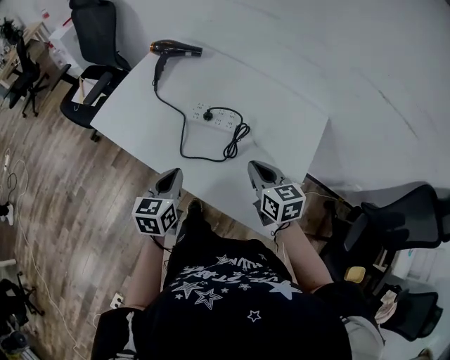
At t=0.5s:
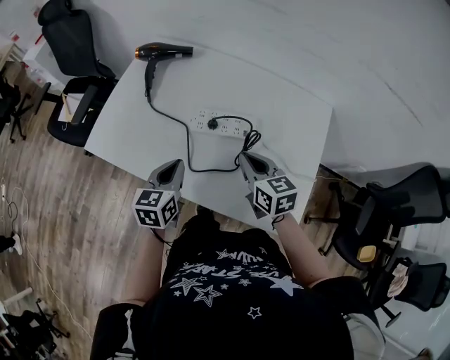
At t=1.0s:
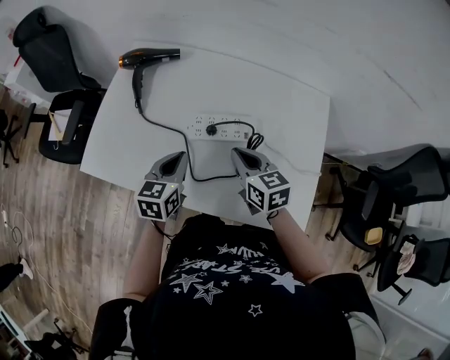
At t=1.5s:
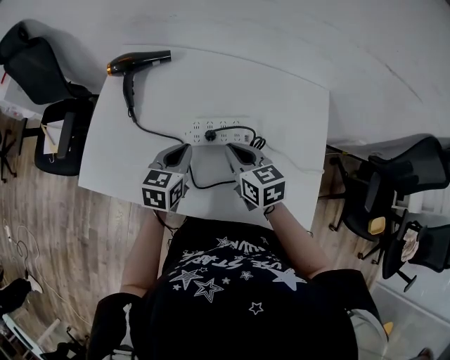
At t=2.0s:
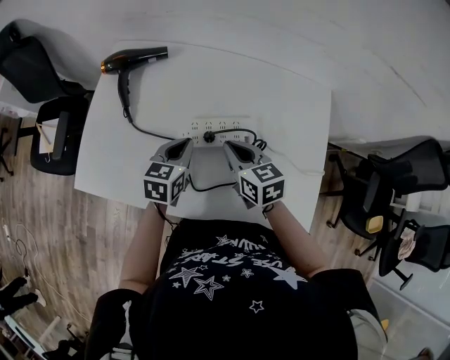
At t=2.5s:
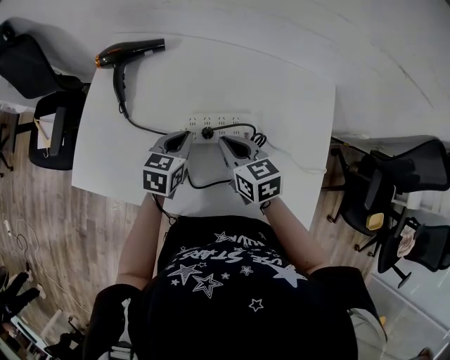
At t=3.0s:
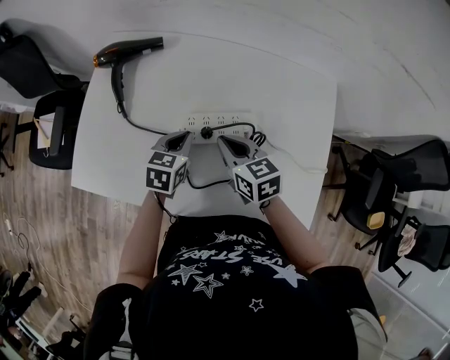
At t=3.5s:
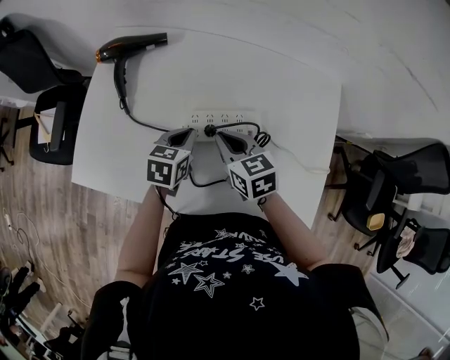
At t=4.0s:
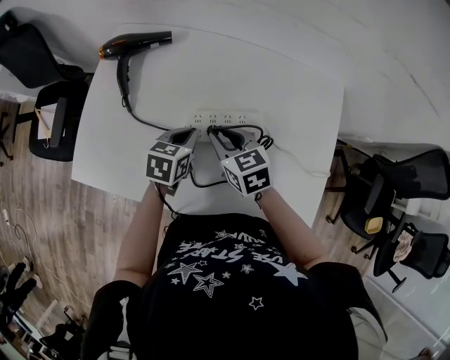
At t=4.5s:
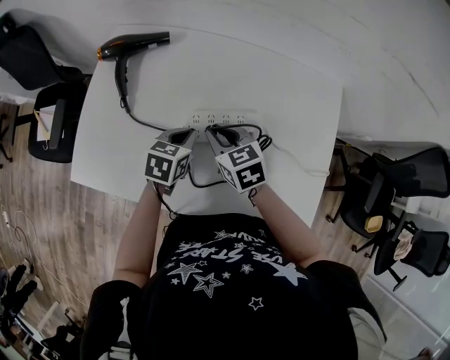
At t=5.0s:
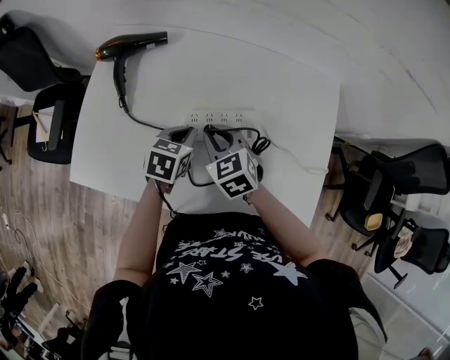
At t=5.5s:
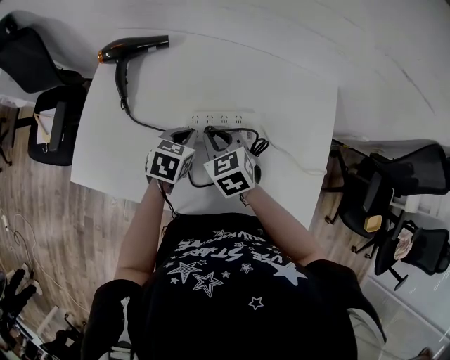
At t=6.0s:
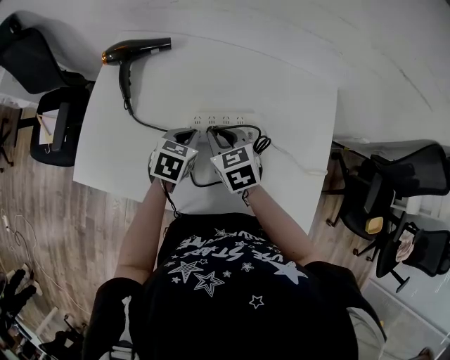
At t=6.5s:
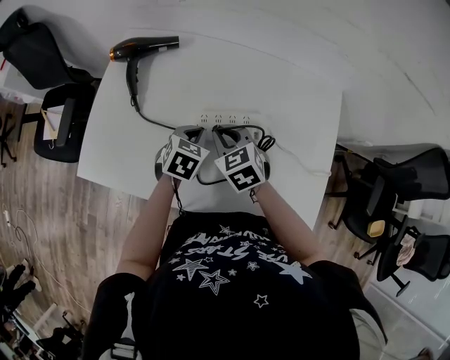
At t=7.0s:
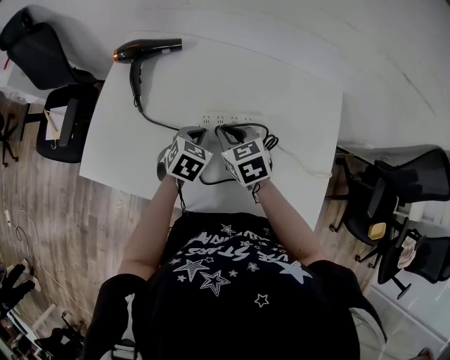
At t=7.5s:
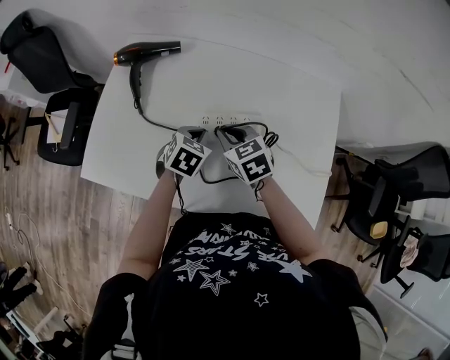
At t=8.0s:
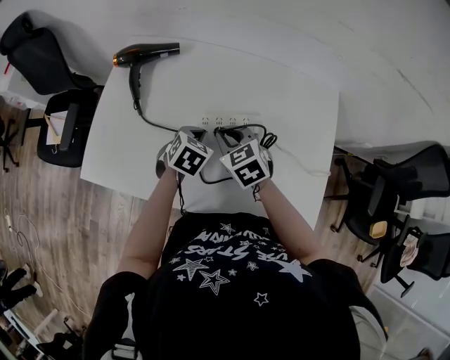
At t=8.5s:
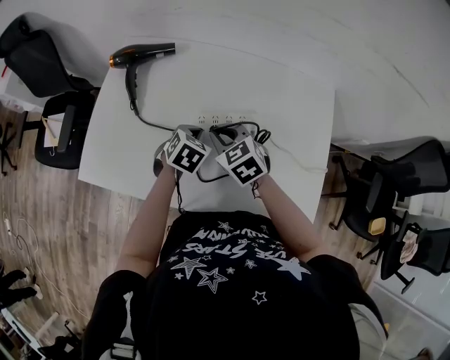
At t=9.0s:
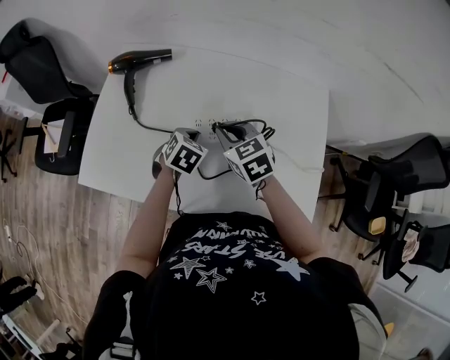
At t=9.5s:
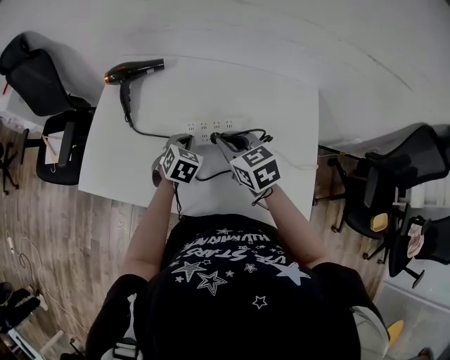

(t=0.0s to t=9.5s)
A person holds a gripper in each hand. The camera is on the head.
t=0.0s - t=2.0s: The right gripper shifts roughly 20 cm forward and to the left, while the left gripper travels forward by roughly 25 cm, and rotates some 30 degrees.
t=2.0s - t=4.0s: The right gripper shifts by about 5 cm.
t=4.0s - t=5.5s: The grippers move only a little.
t=5.5s - t=7.5s: The grippers make only small movements.
t=7.5s - t=9.5s: The right gripper goes approximately 5 cm upward.

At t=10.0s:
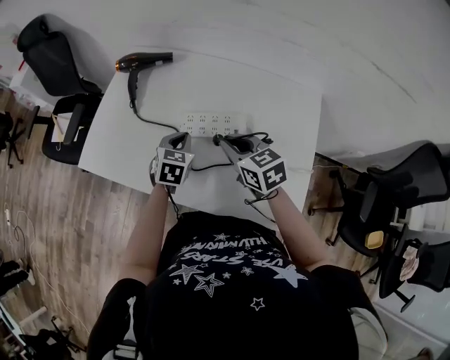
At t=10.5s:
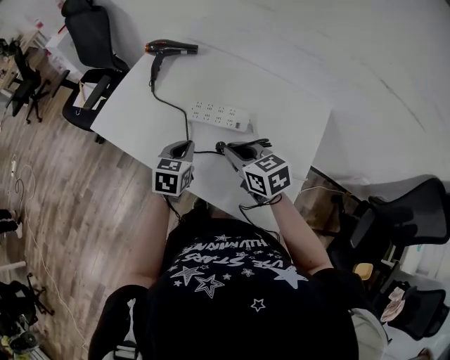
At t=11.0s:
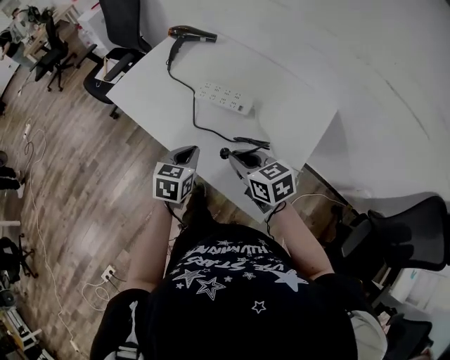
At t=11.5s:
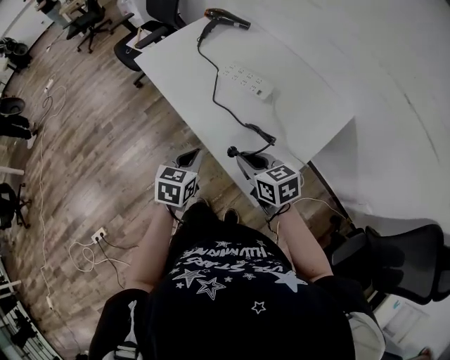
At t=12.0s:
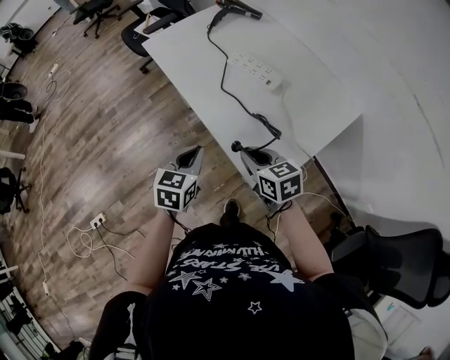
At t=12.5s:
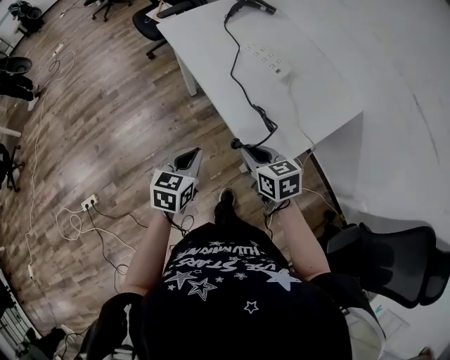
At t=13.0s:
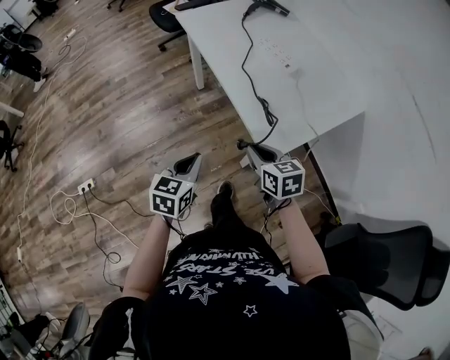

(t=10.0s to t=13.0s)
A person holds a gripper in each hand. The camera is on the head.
t=10.0s - t=11.5s: The left gripper ends up some 35 cm from where it was, and rotates some 30 degrees, while the right gripper ends up approximately 25 cm from where it was, and changes its angle by roughly 30 degrees.
t=11.5s - t=13.0s: The right gripper shifts roughly 15 cm backward. The left gripper is displaced backward and to the left by roughly 25 cm.

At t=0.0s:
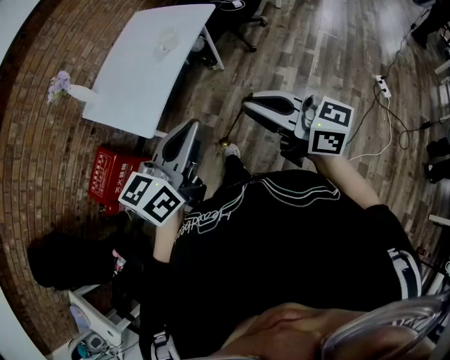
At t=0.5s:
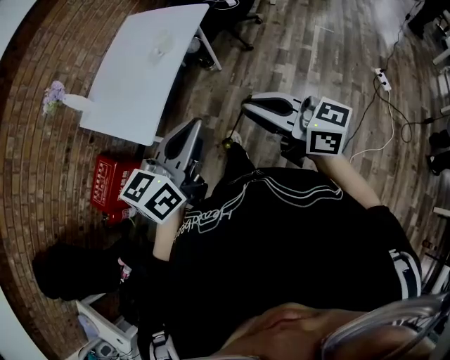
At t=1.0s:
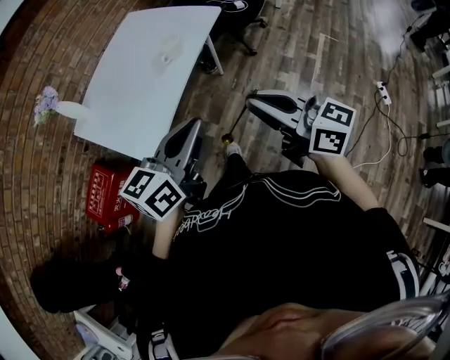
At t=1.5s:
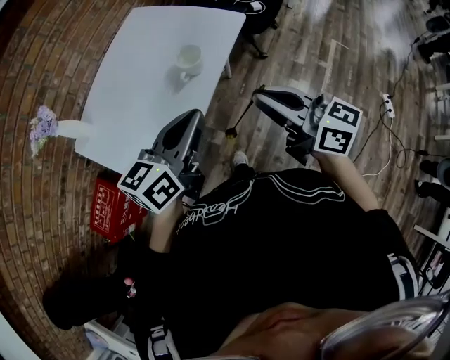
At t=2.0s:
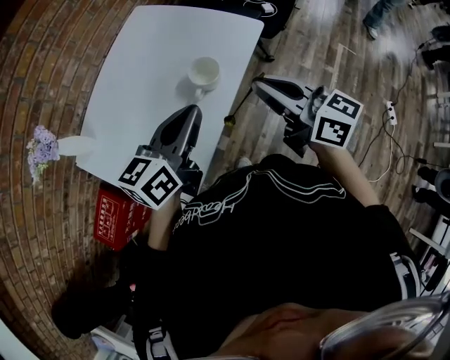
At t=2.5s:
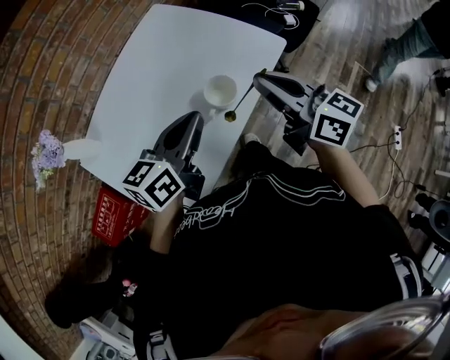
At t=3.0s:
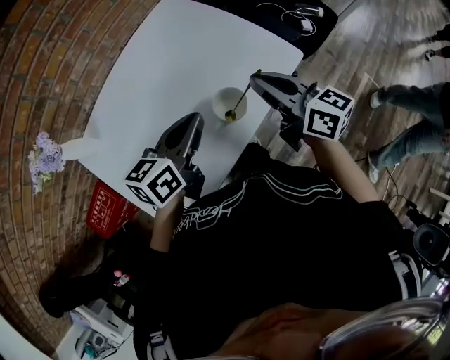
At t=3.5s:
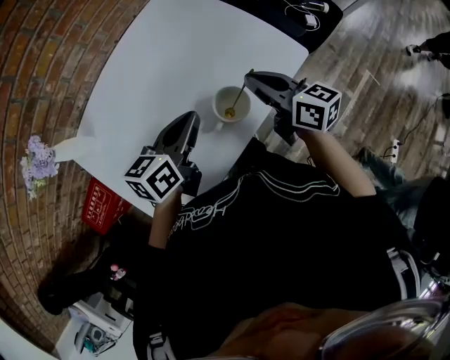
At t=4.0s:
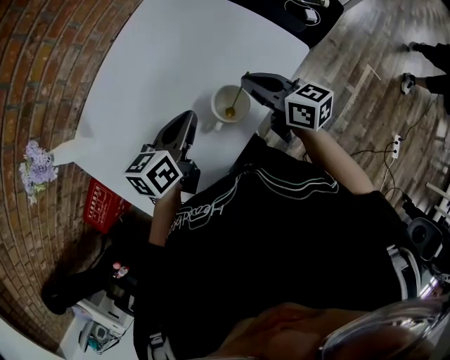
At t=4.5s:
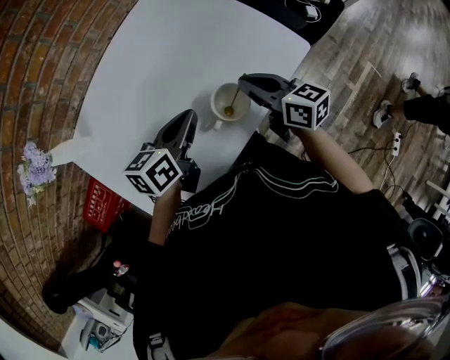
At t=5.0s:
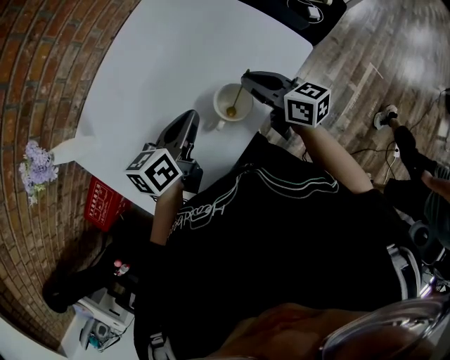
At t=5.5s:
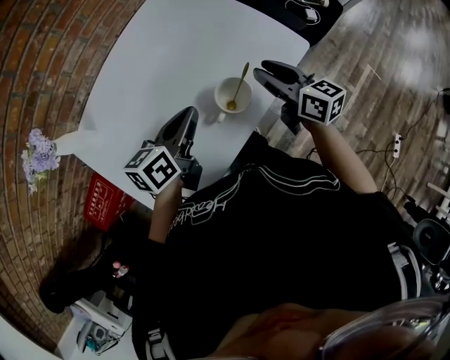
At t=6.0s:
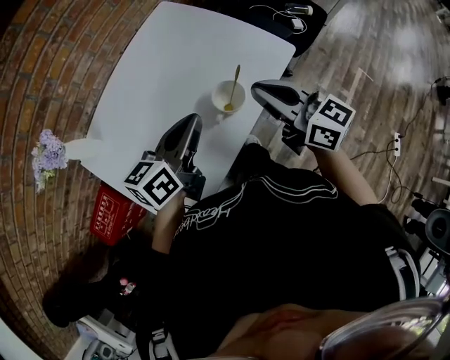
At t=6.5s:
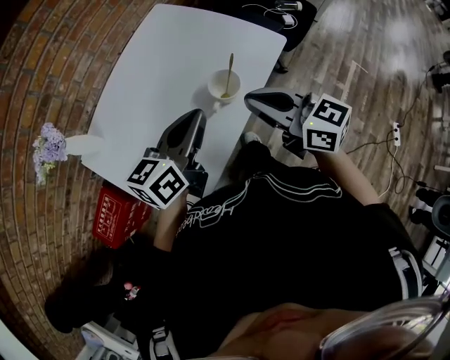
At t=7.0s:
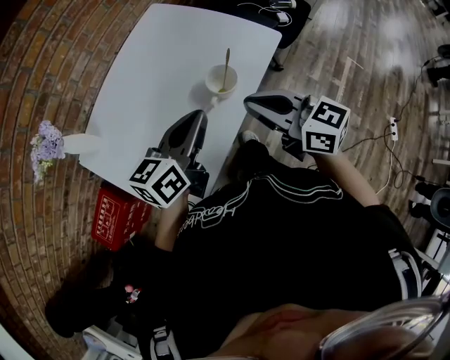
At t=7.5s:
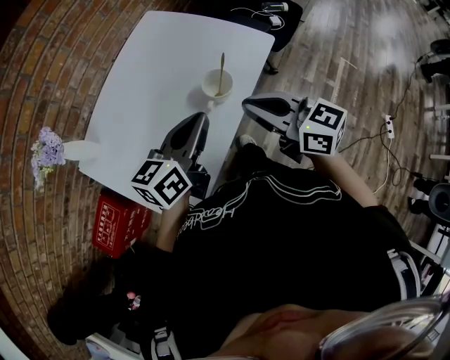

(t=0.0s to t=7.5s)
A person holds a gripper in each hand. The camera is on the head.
t=0.0s - t=2.0s: The pair of grippers is taken forward, some 50 cm.
t=2.0s - t=4.0s: Both grippers move forward and downward, about 25 cm. The left gripper changes its angle by about 20 degrees; the right gripper changes its angle by about 20 degrees.
t=4.0s - t=5.5s: The right gripper opens its fingers.
t=5.5s - t=7.5s: The right gripper heads backward and upward, covering roughly 25 cm, and closes its fingers; the left gripper heads backward and upward, covering approximately 15 cm, and turns by approximately 20 degrees.

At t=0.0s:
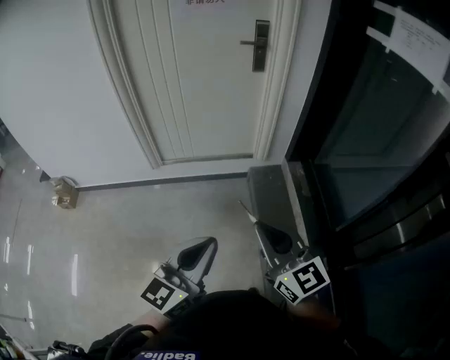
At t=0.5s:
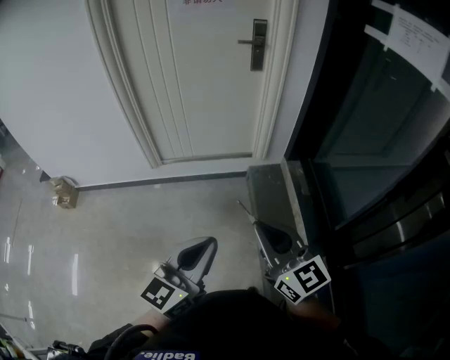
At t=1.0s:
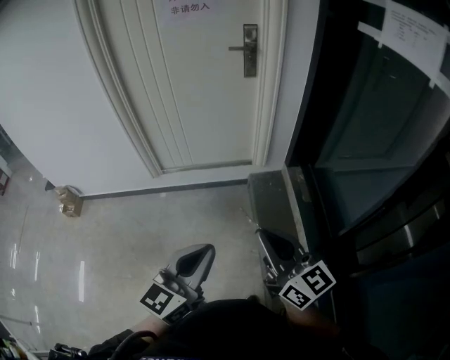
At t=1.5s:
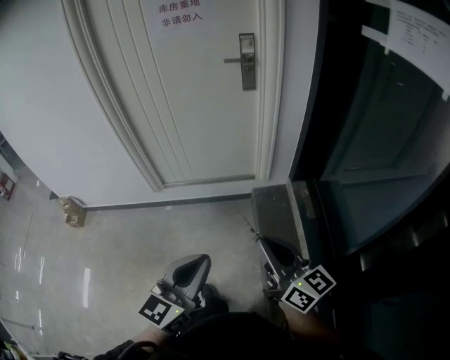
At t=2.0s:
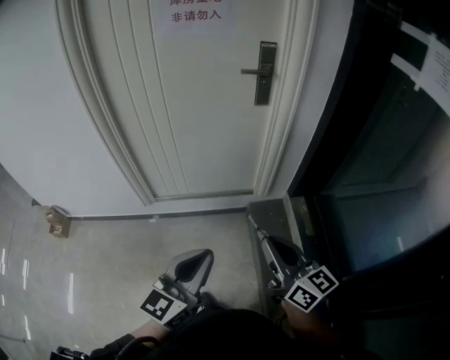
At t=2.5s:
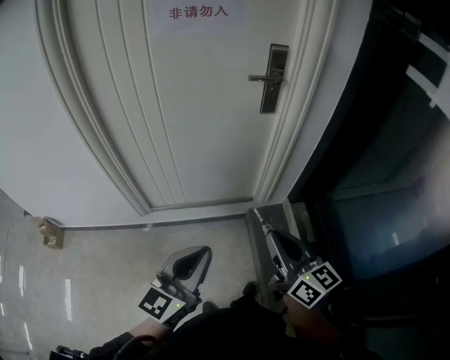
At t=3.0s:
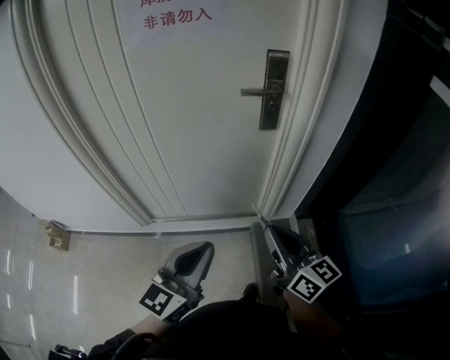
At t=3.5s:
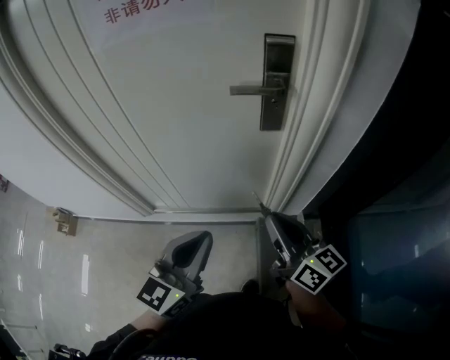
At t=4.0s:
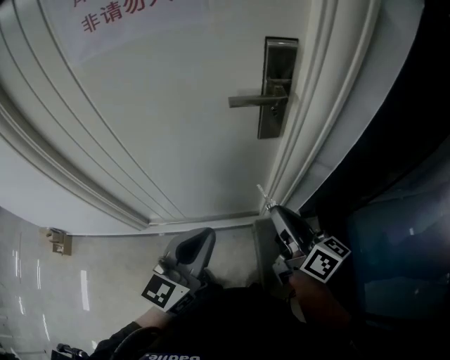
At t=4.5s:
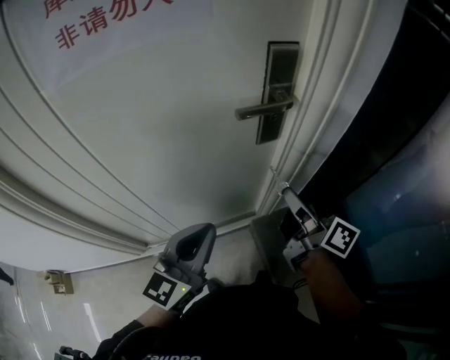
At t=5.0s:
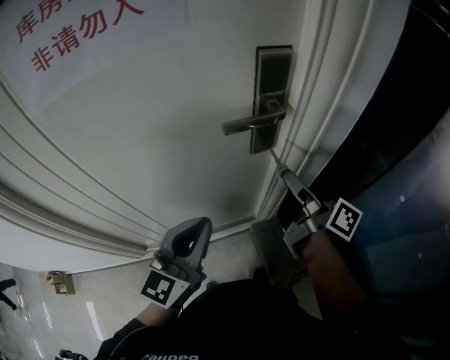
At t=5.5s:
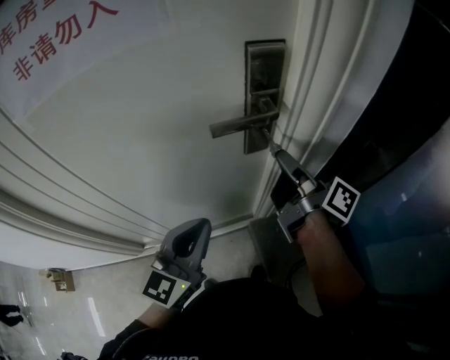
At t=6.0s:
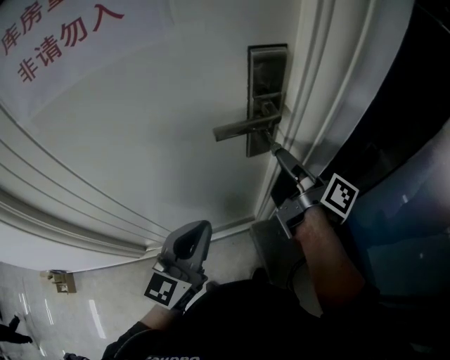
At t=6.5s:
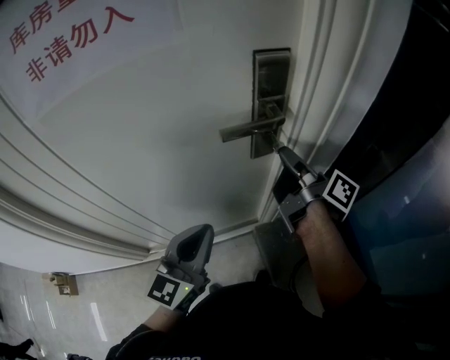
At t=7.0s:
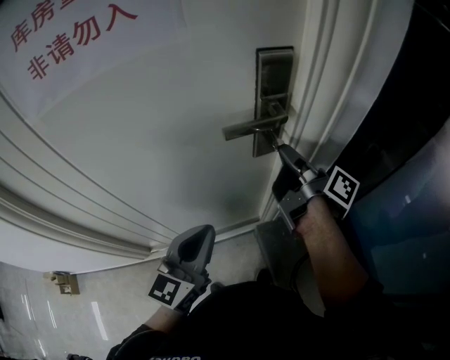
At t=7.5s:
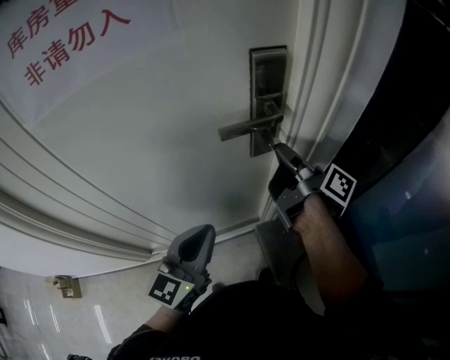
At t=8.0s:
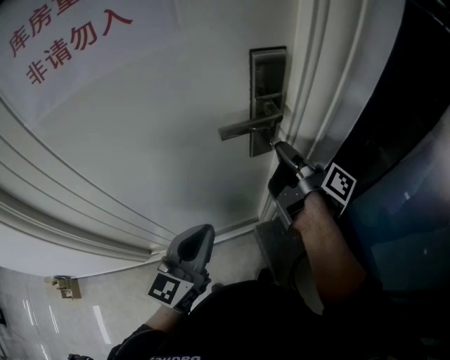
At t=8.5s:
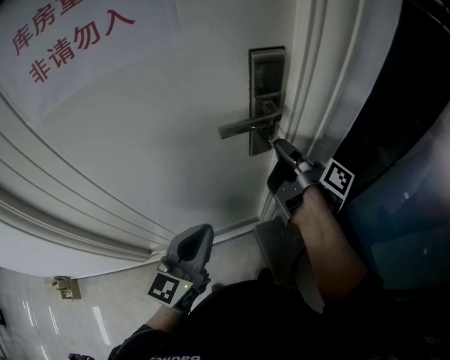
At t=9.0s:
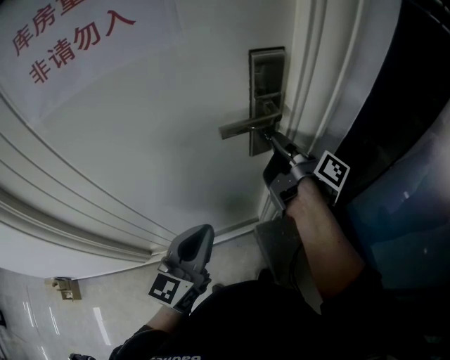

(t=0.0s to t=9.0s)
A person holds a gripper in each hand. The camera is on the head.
t=0.0s - t=2.0s: Both grippers travel together forward, about 25 cm. The right gripper swivels some 20 degrees.
t=2.0s - t=4.5s: Both grippers are carried forward, approximately 50 cm. The right gripper swivels approximately 40 degrees.
t=4.5s - t=7.0s: The left gripper heads forward, covering about 5 cm, while the right gripper goes about 15 cm forward, and swivels approximately 20 degrees.
t=7.0s - t=9.0s: The grippers make only small movements.
